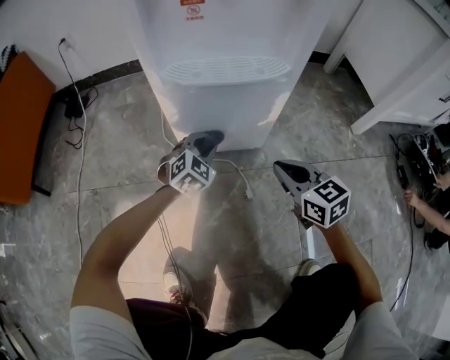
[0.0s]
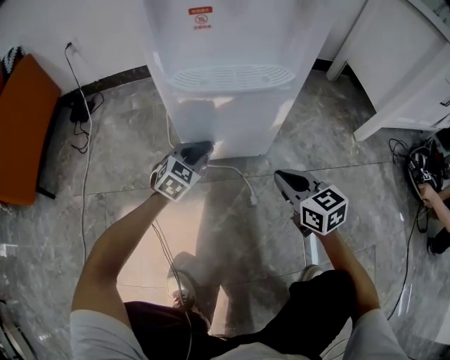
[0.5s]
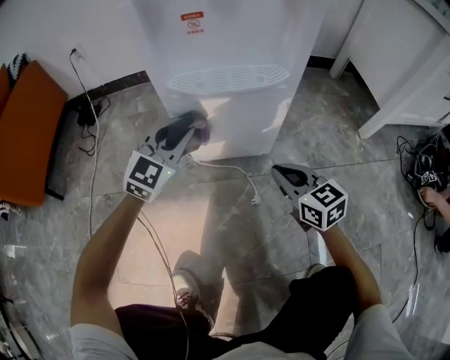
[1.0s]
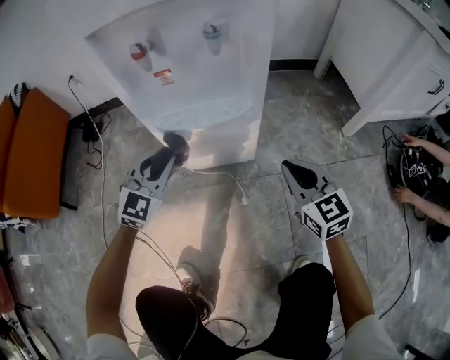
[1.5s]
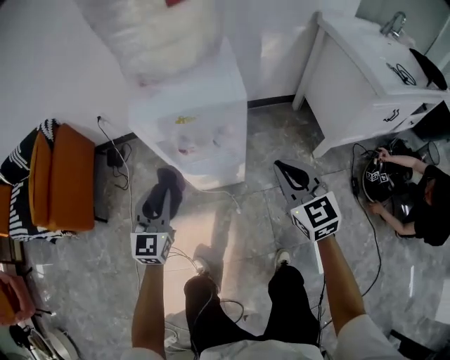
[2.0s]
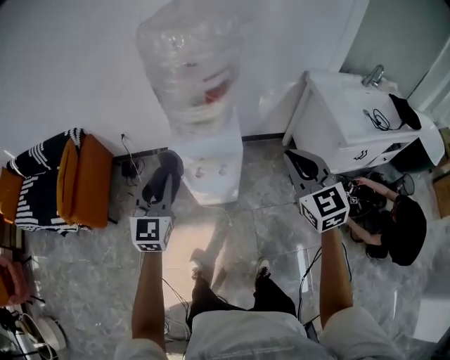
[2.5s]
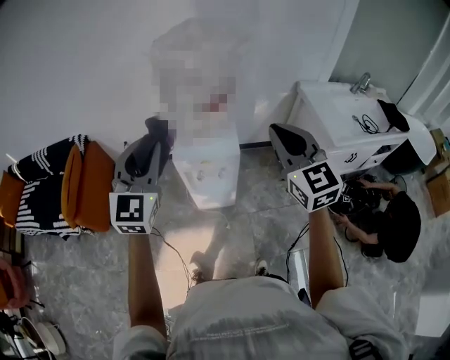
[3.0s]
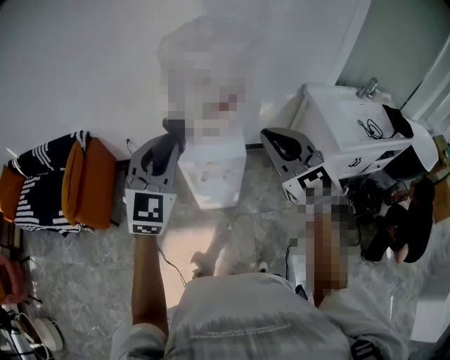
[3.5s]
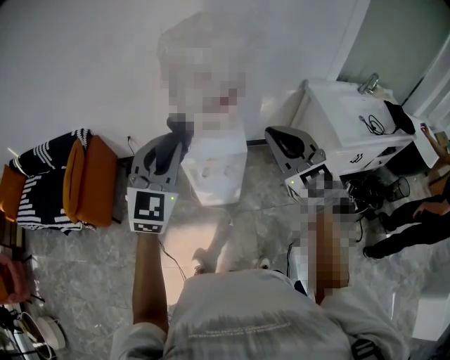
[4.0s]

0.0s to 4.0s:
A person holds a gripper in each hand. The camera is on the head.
0.0s to 2.0s: Both grippers move upward, approximately 50 cm. The left gripper turns by about 40 degrees. The right gripper turns by about 20 degrees.
2.0s to 4.0s: Both grippers move upward, roughly 40 cm.

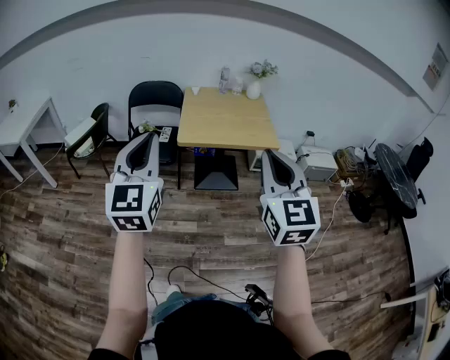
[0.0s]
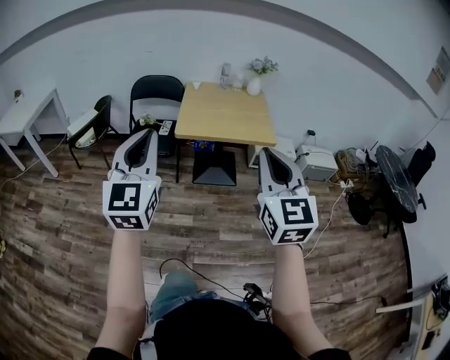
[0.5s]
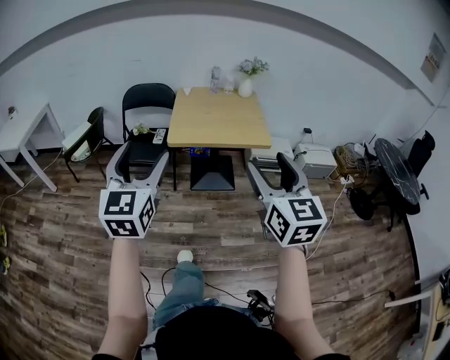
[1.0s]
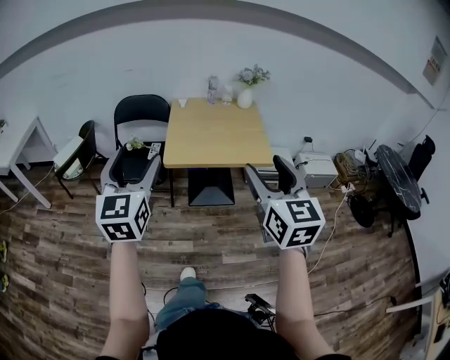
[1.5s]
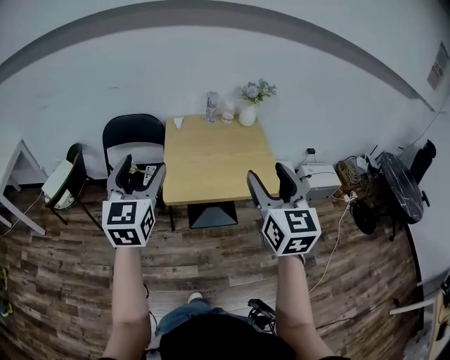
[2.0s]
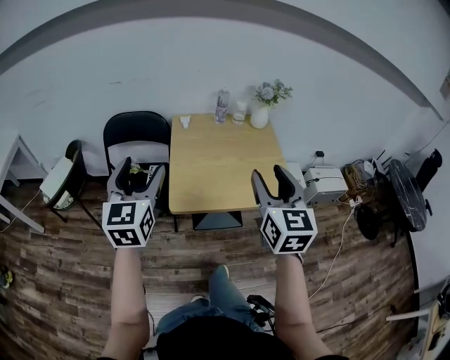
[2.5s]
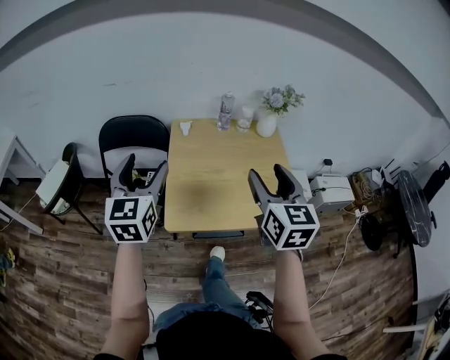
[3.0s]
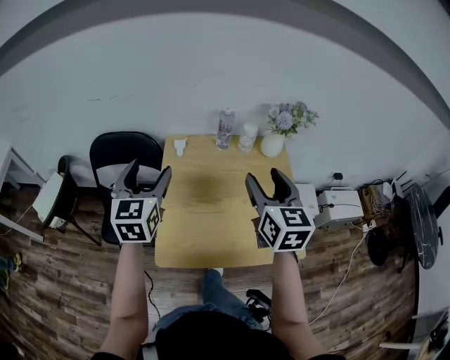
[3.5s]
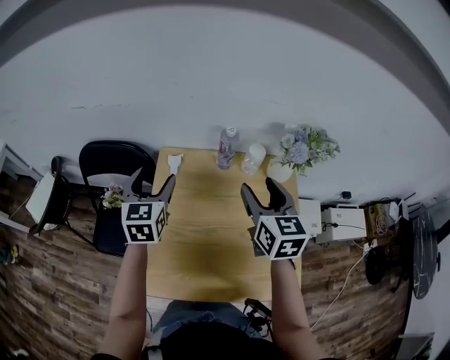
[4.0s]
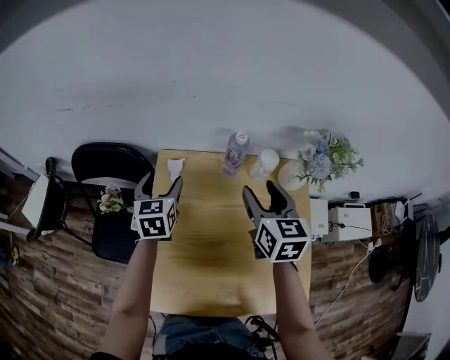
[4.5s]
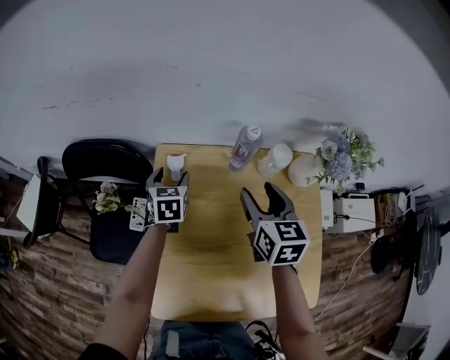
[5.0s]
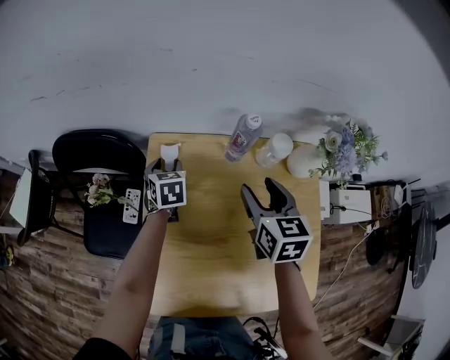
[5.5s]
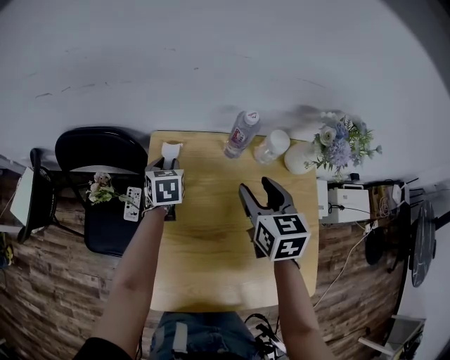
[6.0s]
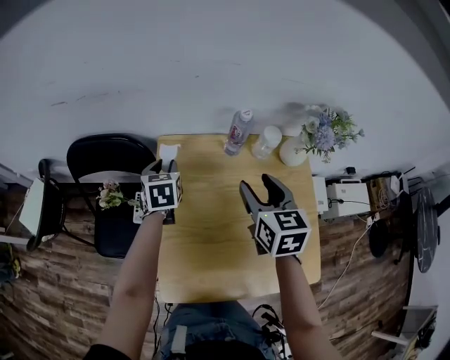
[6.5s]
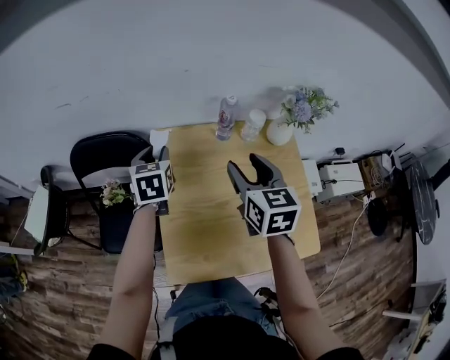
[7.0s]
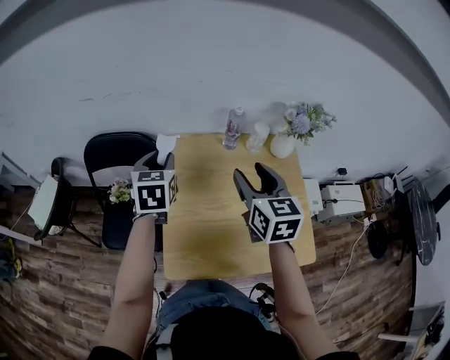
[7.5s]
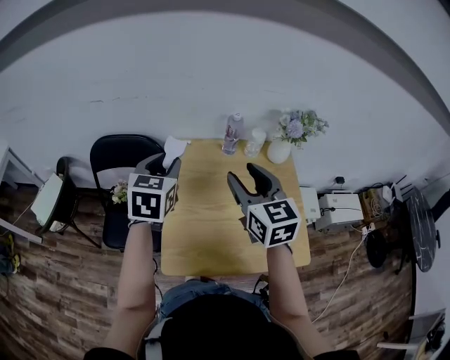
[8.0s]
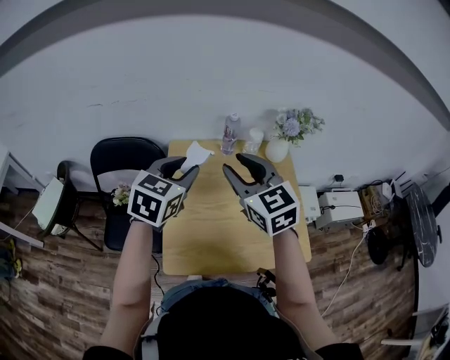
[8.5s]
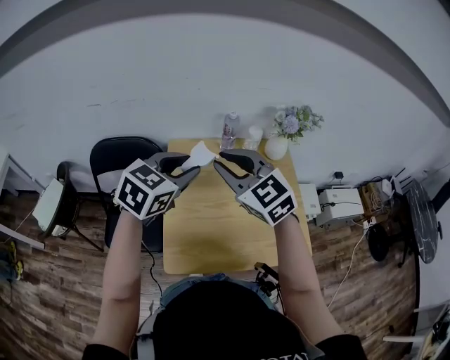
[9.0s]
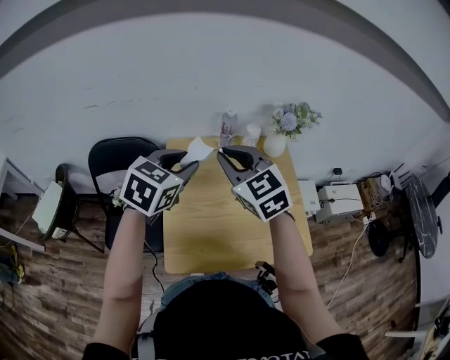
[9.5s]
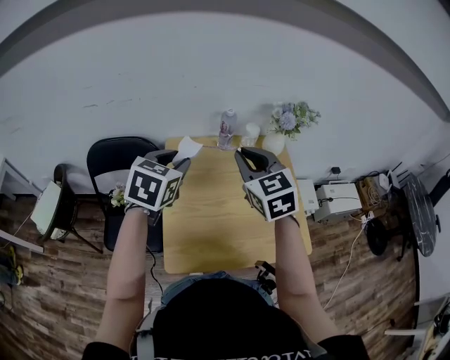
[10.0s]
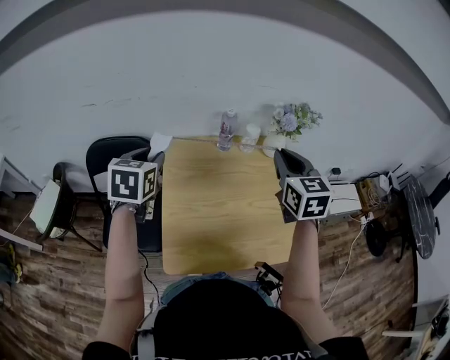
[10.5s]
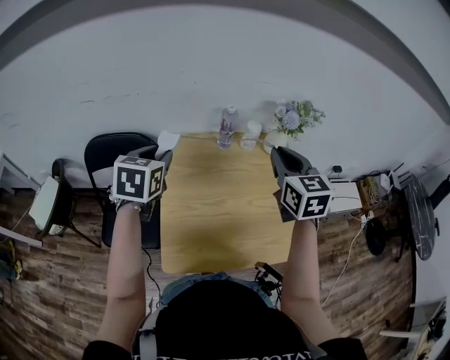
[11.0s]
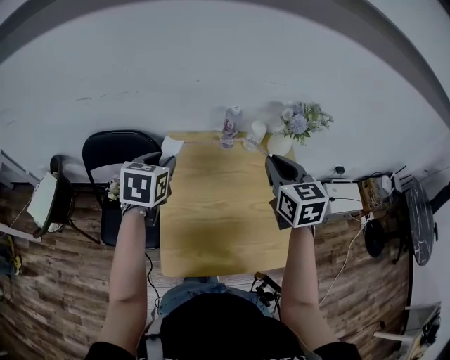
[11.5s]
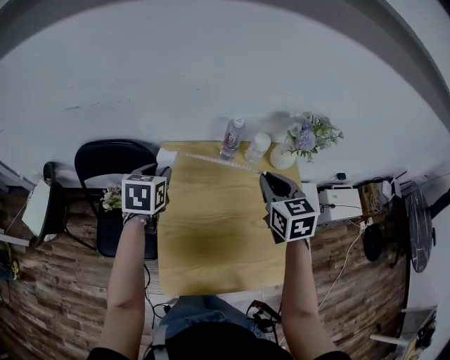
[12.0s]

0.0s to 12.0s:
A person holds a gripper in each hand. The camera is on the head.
0.0s to 2.0s: Both grippers move forward, about 30 cm. The right gripper opens; the left gripper opens.
2.0s to 4.0s: Both grippers are carried forward, approximately 50 cm. The right gripper rotates approximately 20 degrees. The left gripper swivels about 20 degrees.
4.0s to 6.0s: The right gripper shifts about 15 cm downward and forward, while the left gripper moves downward and forward, roughly 25 cm, changes its angle by some 30 degrees, and closes.
6.0s to 8.0s: The left gripper heads upward and backward, covering approximately 35 cm, and changes its angle by about 30 degrees; the right gripper shifts about 25 cm upward, backward and to the left, and rotates approximately 20 degrees.
8.0s to 10.0s: The right gripper closes up.
10.0s to 12.0s: The right gripper heads downward, forward and to the right, covering approximately 15 cm. The left gripper shifts about 20 cm forward, downward and to the left, and swivels some 20 degrees.

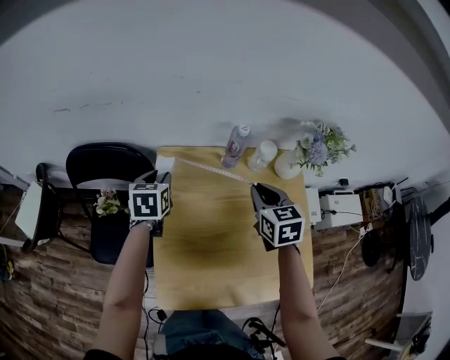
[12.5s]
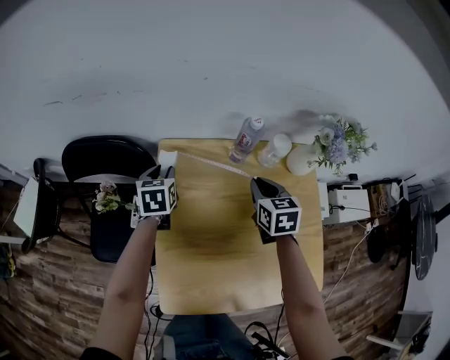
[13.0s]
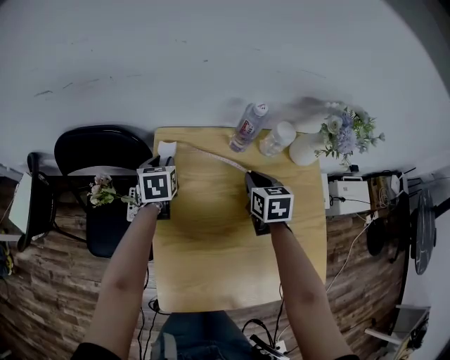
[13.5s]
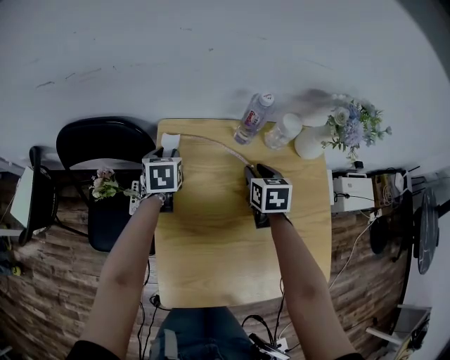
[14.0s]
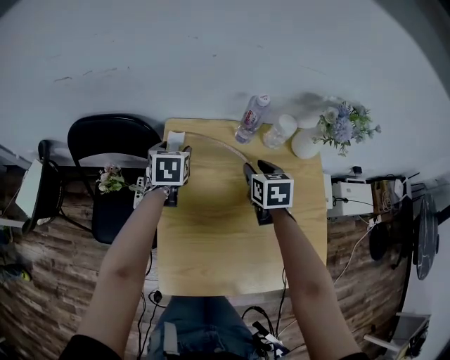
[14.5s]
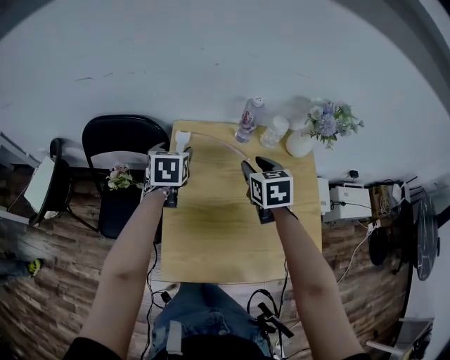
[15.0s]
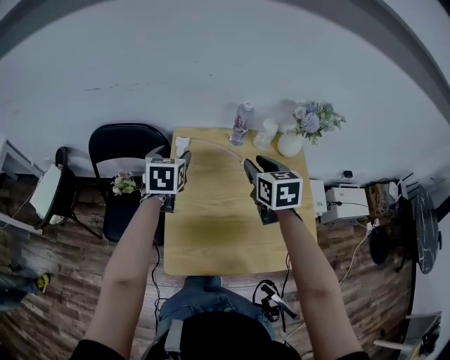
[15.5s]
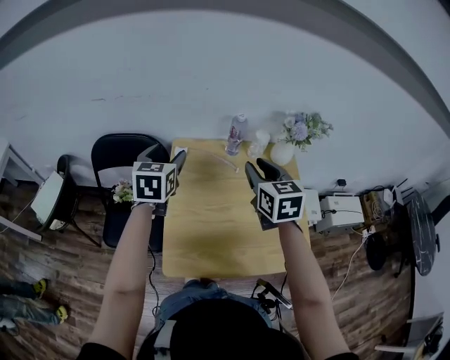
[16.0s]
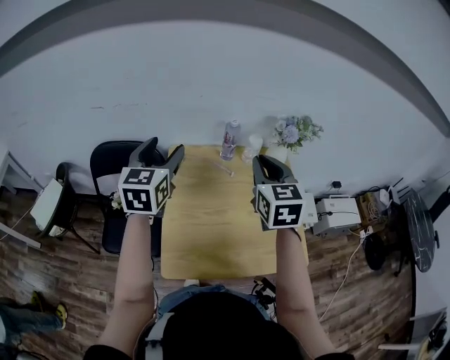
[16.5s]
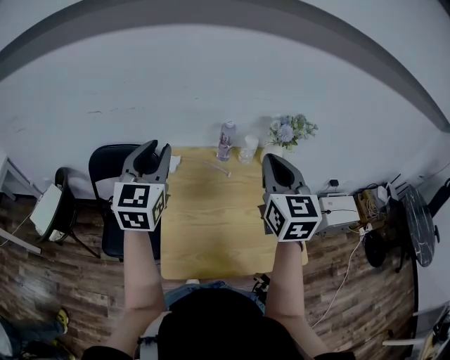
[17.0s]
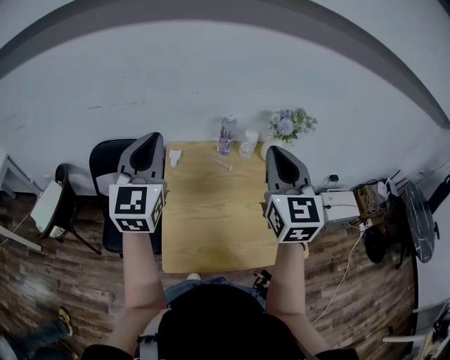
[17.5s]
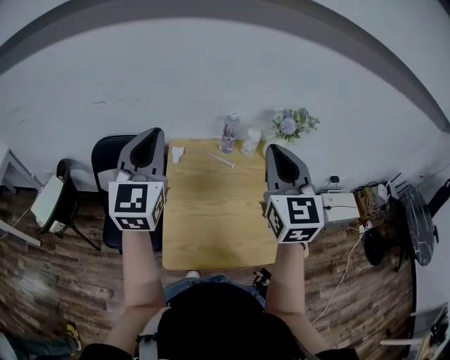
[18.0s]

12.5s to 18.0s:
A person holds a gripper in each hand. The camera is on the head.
12.5s to 14.5s: The right gripper heads downward, covering some 10 cm, and opens up. Meanwhile the left gripper goes roughly 5 cm downward, and opens.
14.5s to 16.0s: Both grippers move upward and backward, approximately 25 cm. The left gripper rotates some 20 degrees. The right gripper turns by approximately 20 degrees.
16.0s to 18.0s: Both grippers move upward and backward, roughly 20 cm. The left gripper points its fingers some 30 degrees further upward, and closes; the right gripper rotates roughly 30 degrees, and closes up.

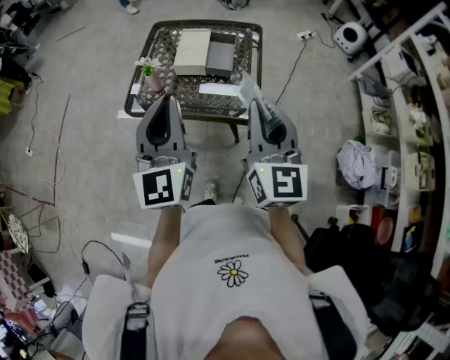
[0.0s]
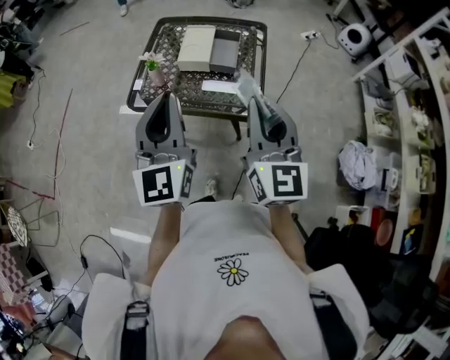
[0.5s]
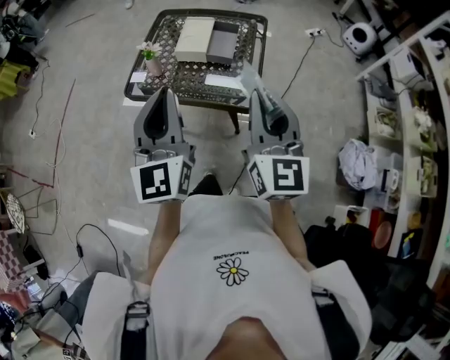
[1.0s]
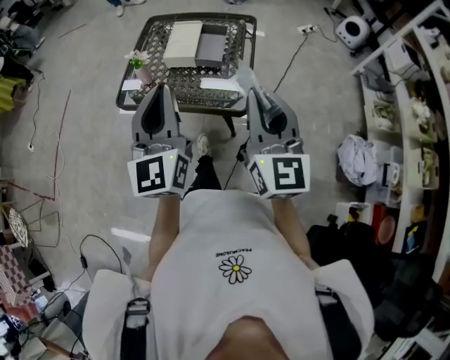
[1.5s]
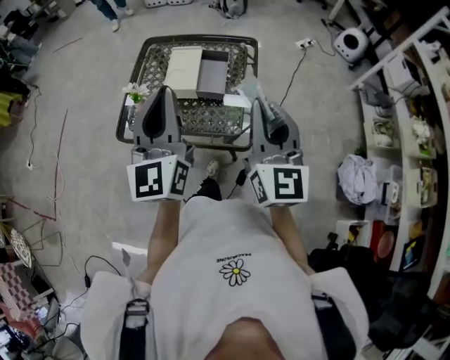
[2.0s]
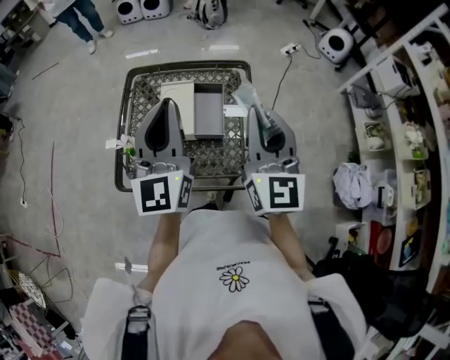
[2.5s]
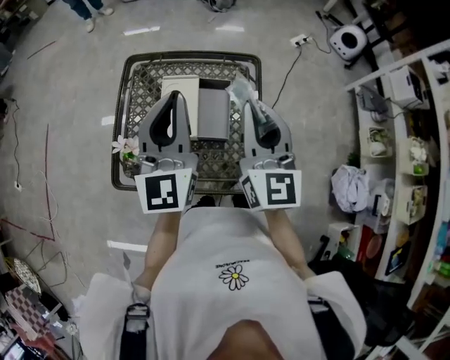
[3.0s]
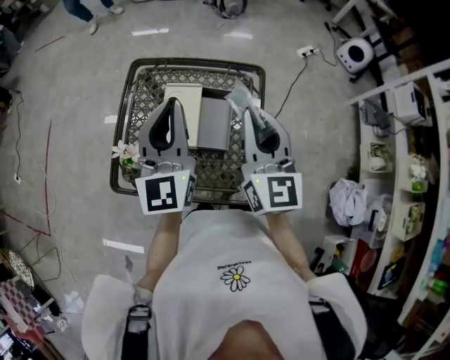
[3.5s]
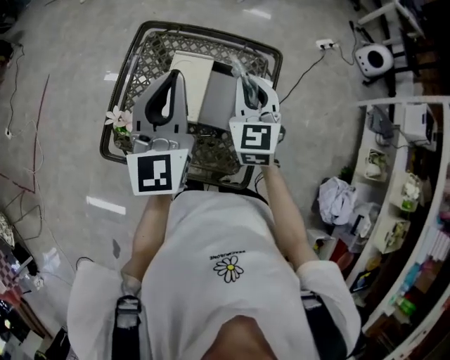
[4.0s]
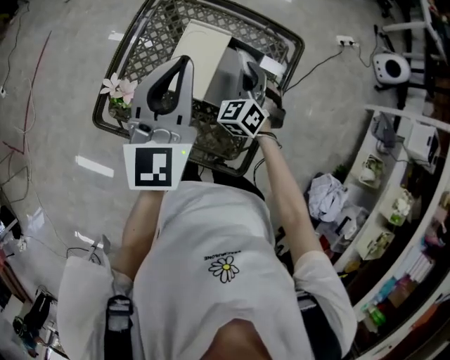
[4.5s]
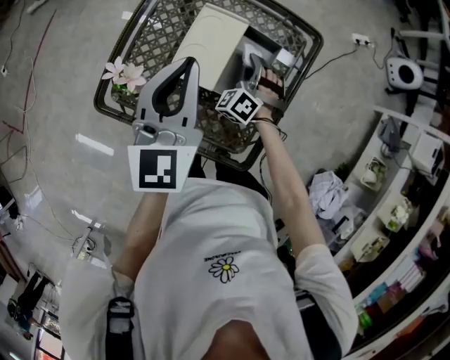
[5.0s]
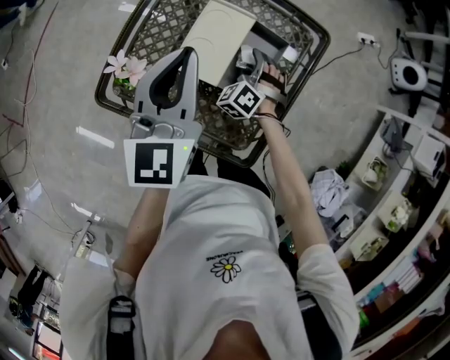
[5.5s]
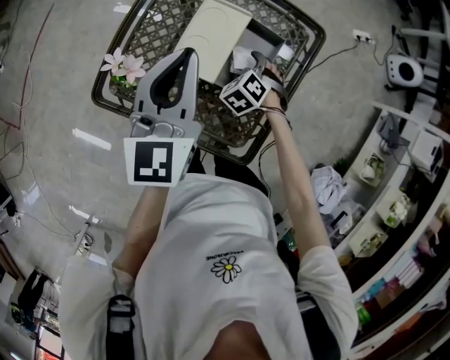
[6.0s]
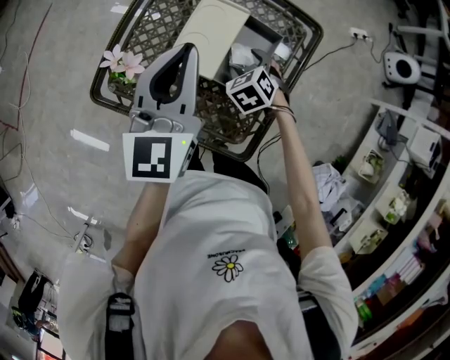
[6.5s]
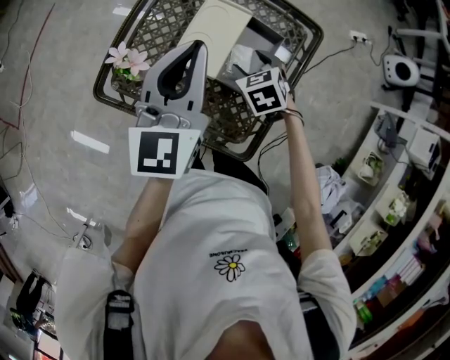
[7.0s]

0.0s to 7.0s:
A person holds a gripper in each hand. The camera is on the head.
0.0s to 2.0s: The two grippers go some 10 cm forward.
2.0s to 3.5s: The grippers both shift forward by about 25 cm.
3.5s to 5.0s: The right gripper goes roughly 35 cm downward, and rolls counterclockwise, seen from behind, by some 70 degrees, while the left gripper goes roughly 10 cm downward.
5.0s to 7.0s: The right gripper travels backward by some 5 cm, swivels approximately 50 degrees, and opens its fingers.
